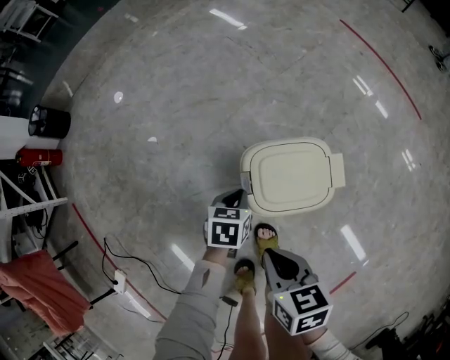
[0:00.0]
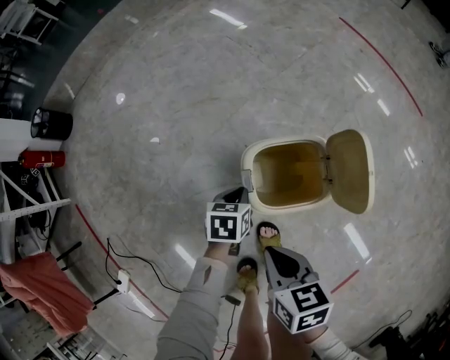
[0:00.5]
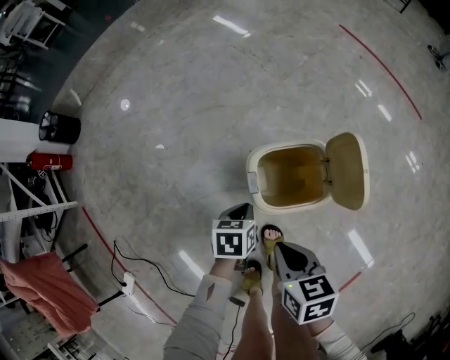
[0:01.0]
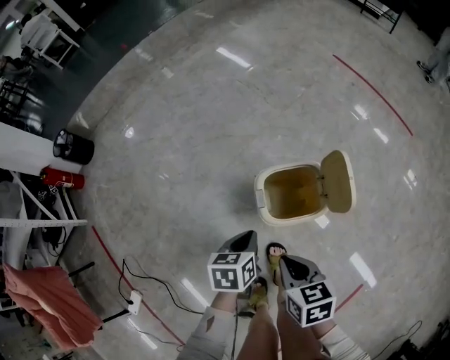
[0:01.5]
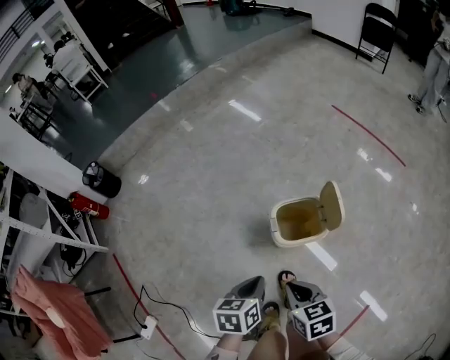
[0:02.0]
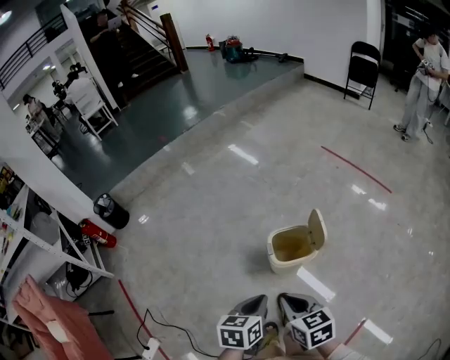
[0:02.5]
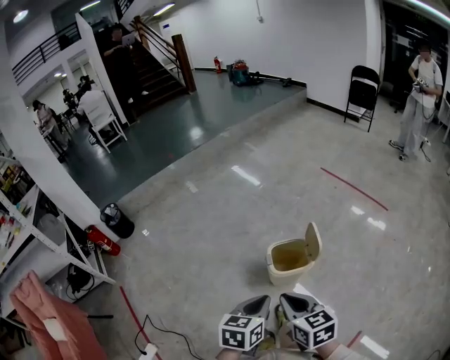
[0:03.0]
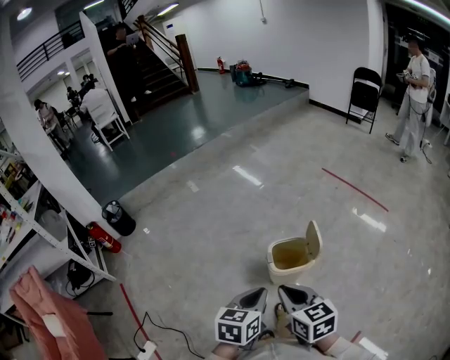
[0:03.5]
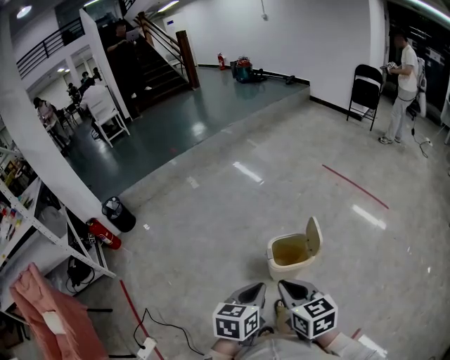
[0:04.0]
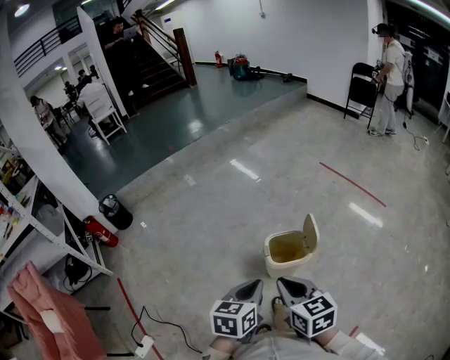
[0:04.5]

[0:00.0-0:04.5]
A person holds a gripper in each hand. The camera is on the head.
0:00.0 to 0:02.0: The left gripper moves upward and backward, some 35 cm, while the right gripper shifts roughly 15 cm upward and backward.
0:02.0 to 0:04.5: The left gripper heads upward and backward, covering about 20 cm, and turns by approximately 20 degrees; the right gripper goes about 20 cm upward, and swivels some 20 degrees.

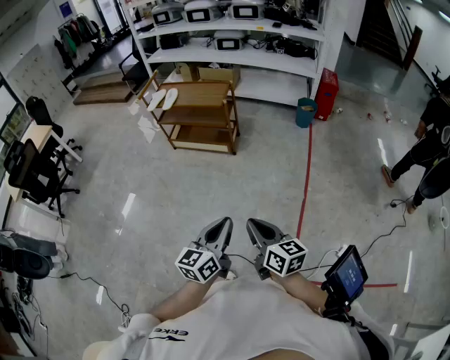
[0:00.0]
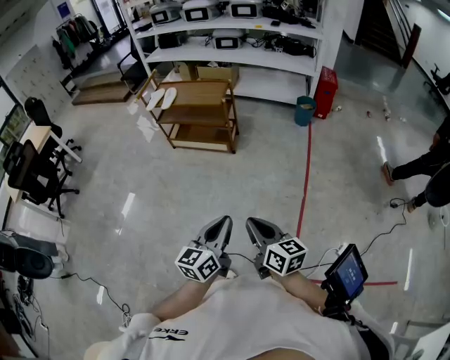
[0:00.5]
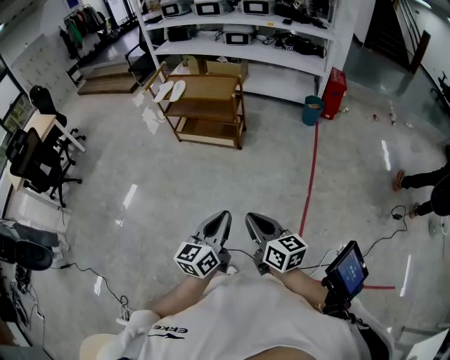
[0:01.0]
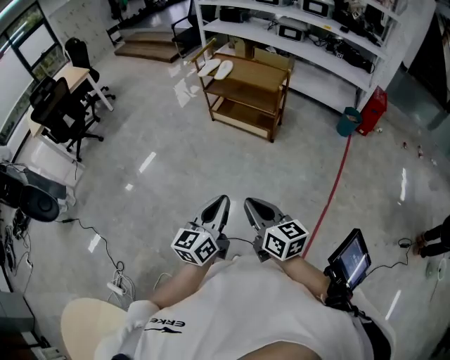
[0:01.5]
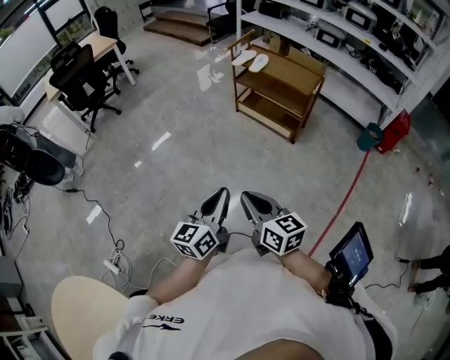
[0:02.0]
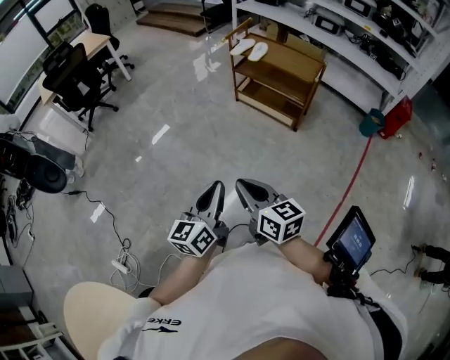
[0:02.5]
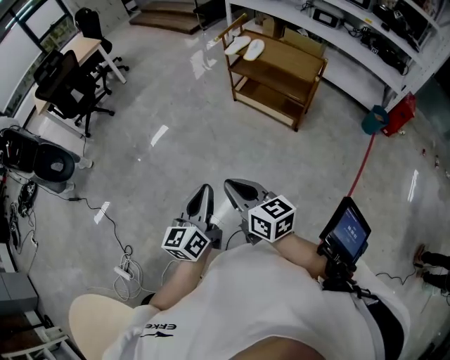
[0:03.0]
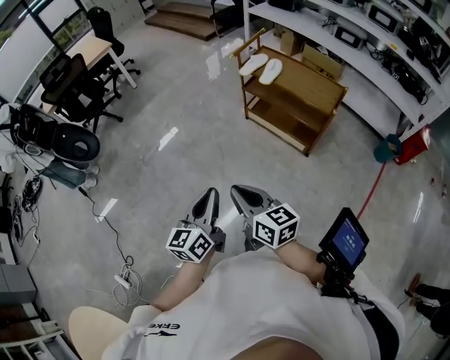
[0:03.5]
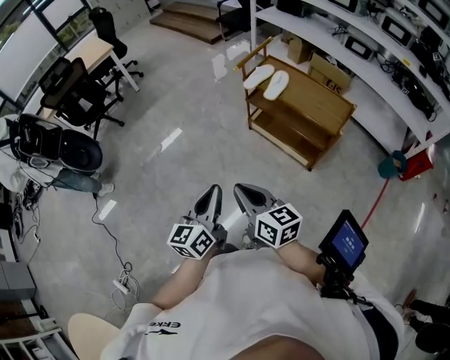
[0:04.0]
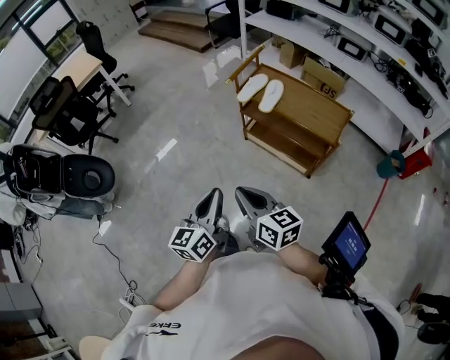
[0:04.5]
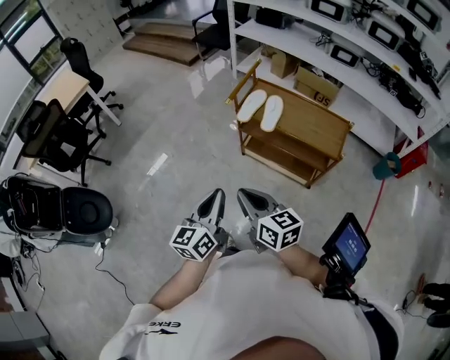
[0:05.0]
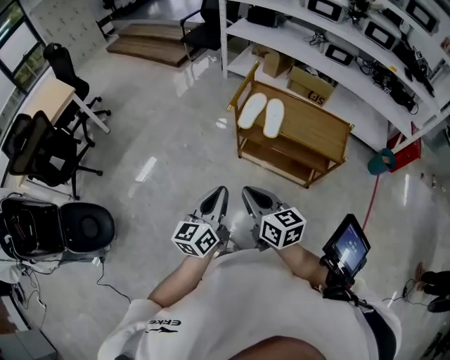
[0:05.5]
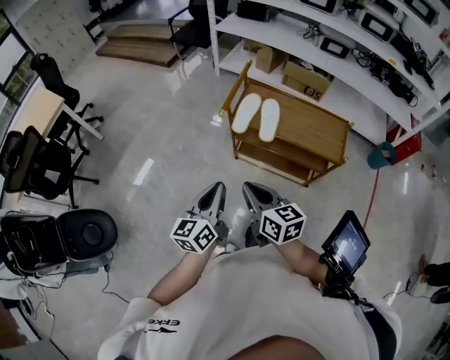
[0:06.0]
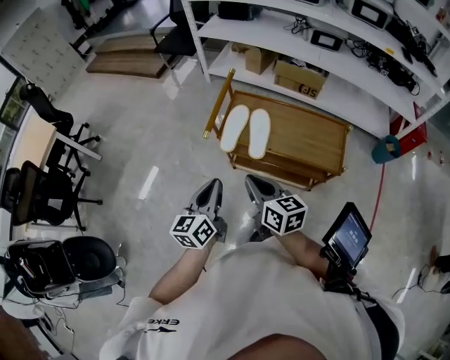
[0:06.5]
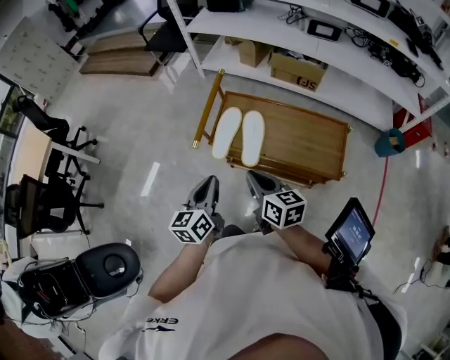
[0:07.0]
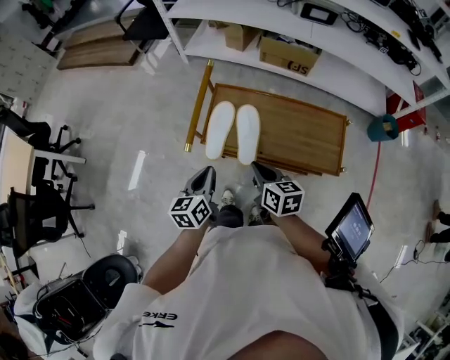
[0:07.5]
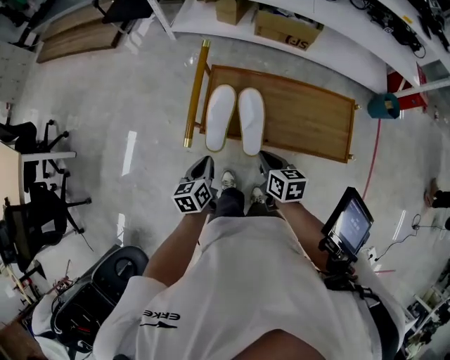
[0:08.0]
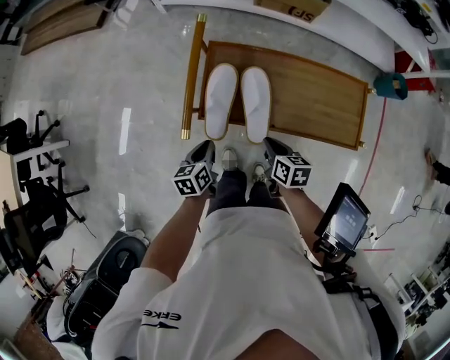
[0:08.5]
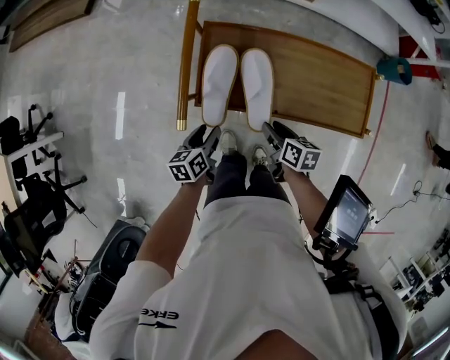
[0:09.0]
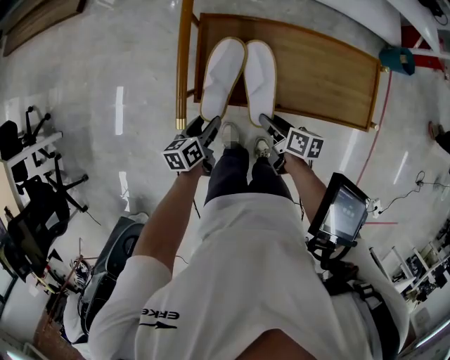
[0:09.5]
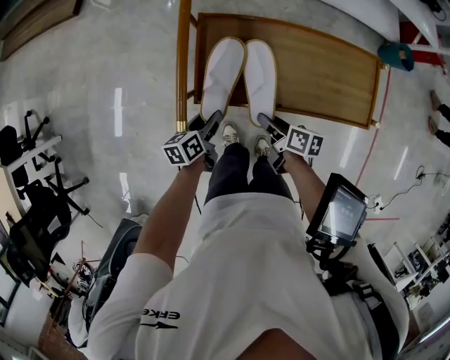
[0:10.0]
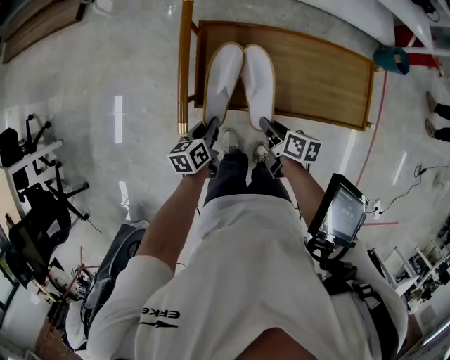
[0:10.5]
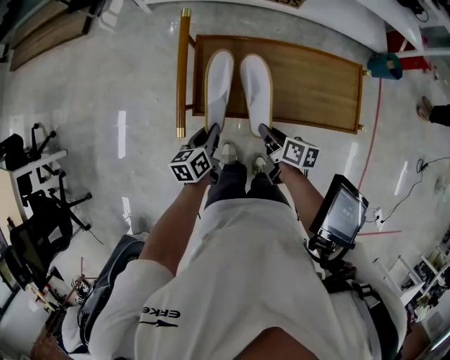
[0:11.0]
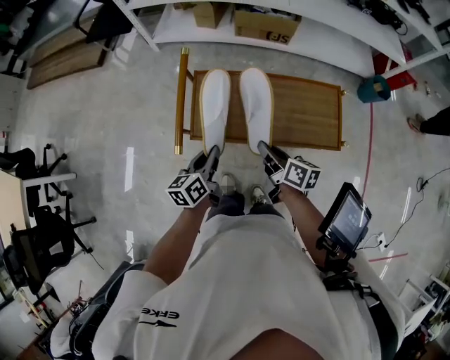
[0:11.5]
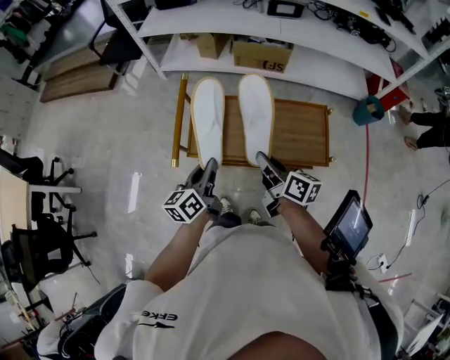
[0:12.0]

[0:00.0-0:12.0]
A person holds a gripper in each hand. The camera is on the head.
0:00.0 to 0:02.0: The right gripper changes place by about 25 cm, and rotates roughly 30 degrees. The left gripper moves some 25 cm, and swivels roughly 30 degrees.
0:02.0 to 0:04.0: The grippers both shift forward by roughly 35 cm.
0:04.0 to 0:06.0: The grippers both shift forward by roughly 35 cm. The right gripper rotates about 20 degrees.
0:06.0 to 0:08.0: The left gripper heads forward and downward, covering about 40 cm, and angles its fingers downward, by approximately 30 degrees. Meanwhile the right gripper is displaced forward, downward and to the right by about 40 cm, and rotates some 30 degrees.
0:08.0 to 0:10.0: The left gripper heads downward and forward, covering approximately 15 cm, rotates approximately 20 degrees, and opens up. The right gripper is displaced downward by roughly 15 cm, rotates about 30 degrees, and opens up.
0:10.0 to 0:12.0: The two grippers go approximately 25 cm upward. The left gripper turns by approximately 30 degrees, and closes up, while the right gripper changes its angle by some 30 degrees, and closes up.

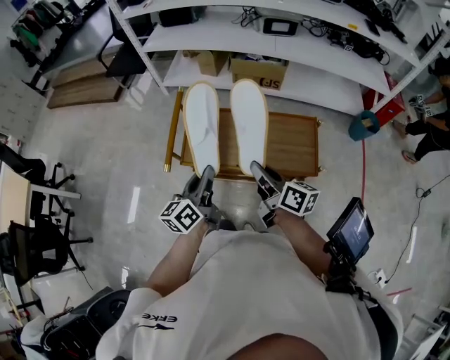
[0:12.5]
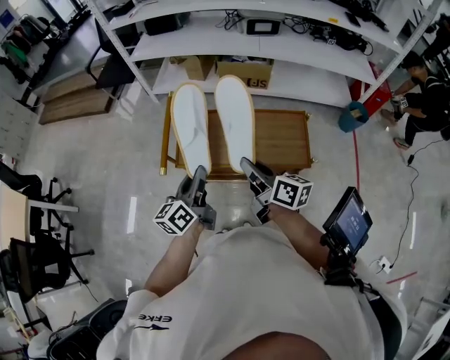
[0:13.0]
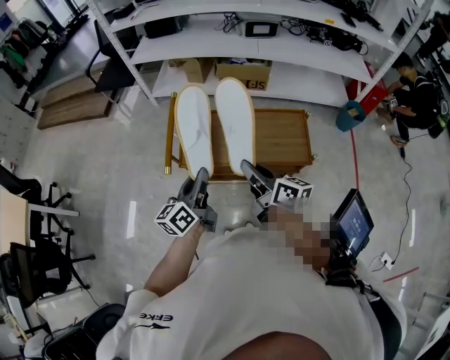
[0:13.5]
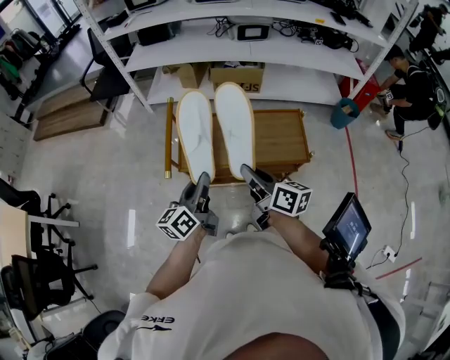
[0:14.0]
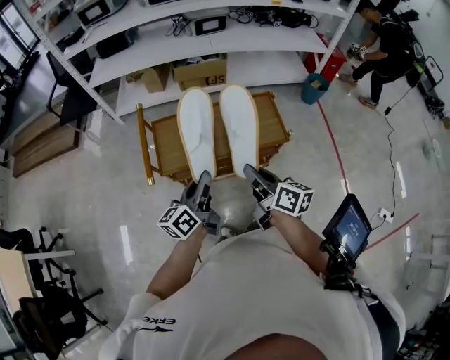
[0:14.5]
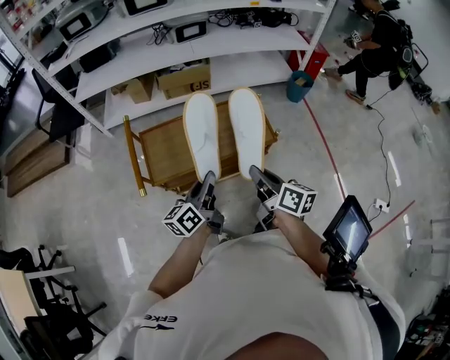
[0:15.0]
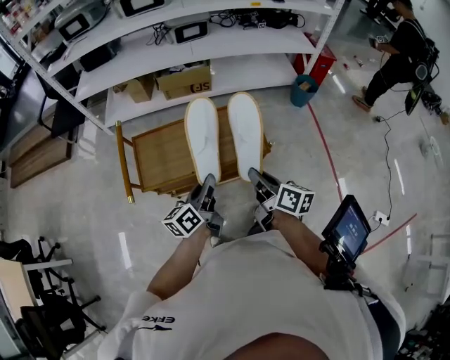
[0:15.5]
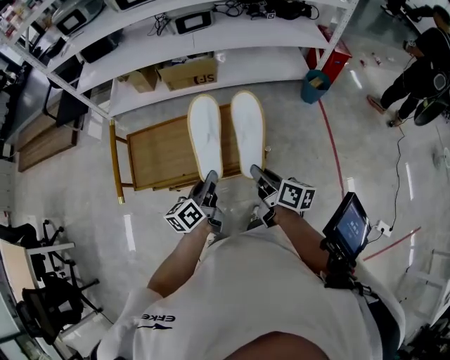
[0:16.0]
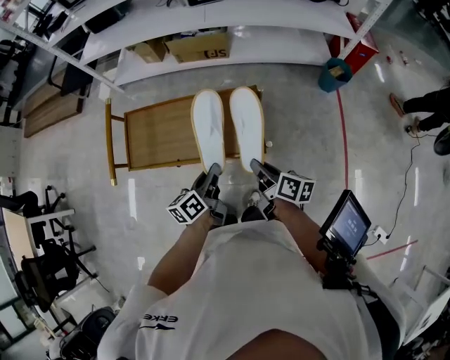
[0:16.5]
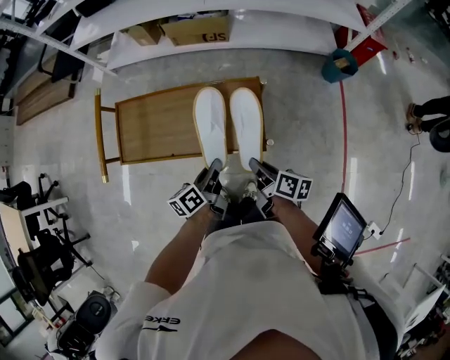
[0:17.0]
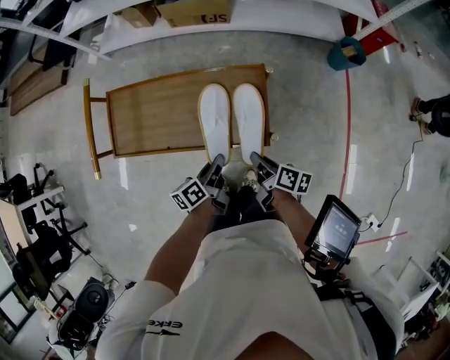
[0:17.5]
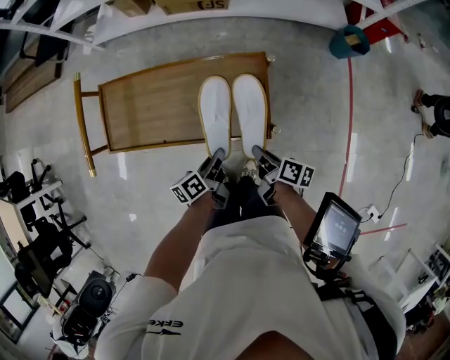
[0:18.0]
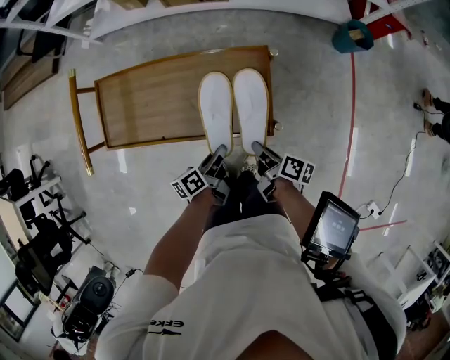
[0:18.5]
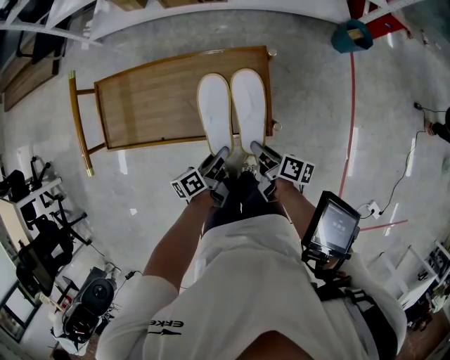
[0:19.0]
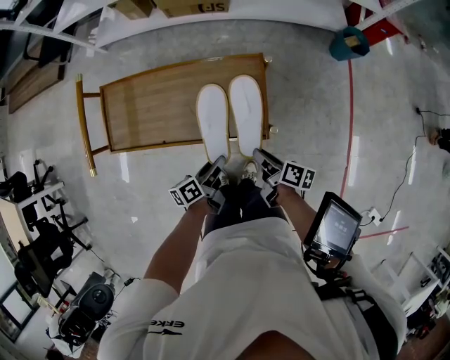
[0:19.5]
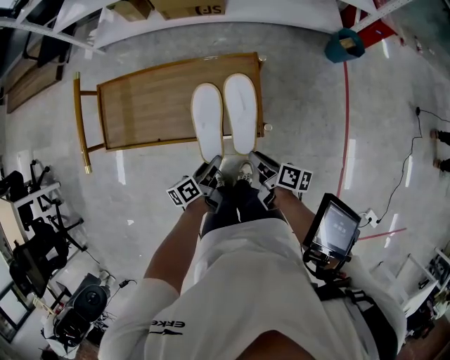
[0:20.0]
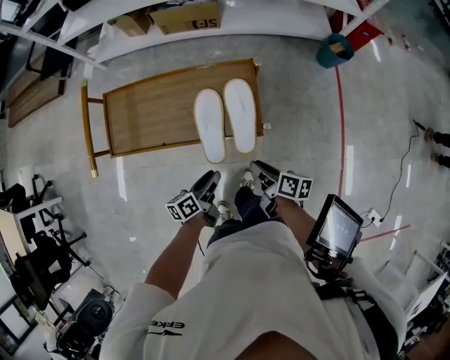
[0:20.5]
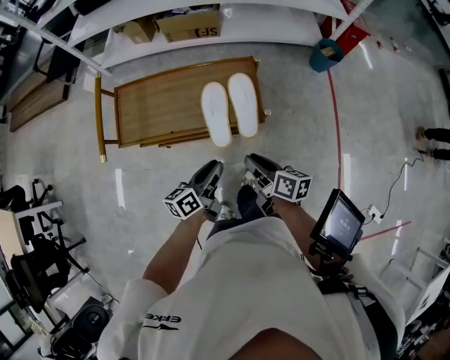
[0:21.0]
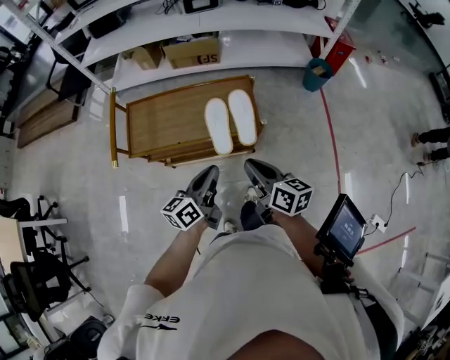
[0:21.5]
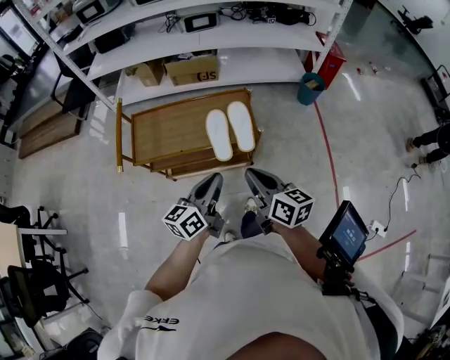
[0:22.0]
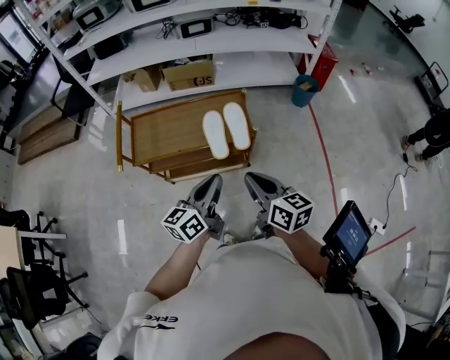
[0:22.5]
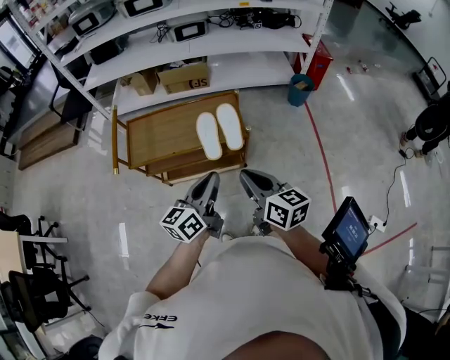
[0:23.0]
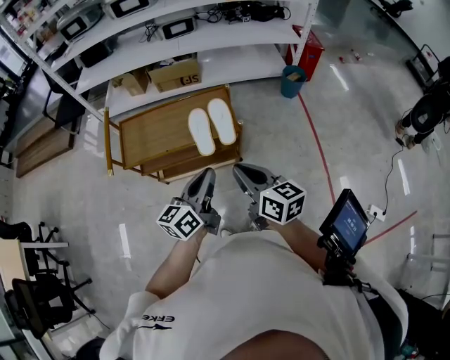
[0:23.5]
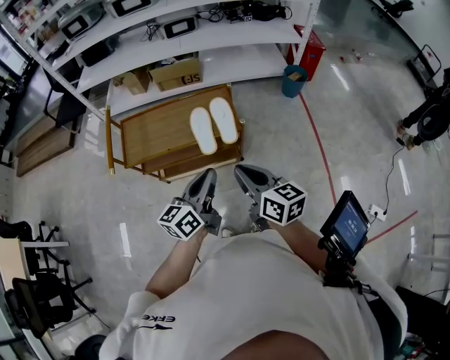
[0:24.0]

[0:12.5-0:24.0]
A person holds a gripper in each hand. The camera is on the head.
0:12.5 to 0:14.5: The right gripper heads backward, covering roughly 10 cm, while the left gripper travels backward by approximately 5 cm, and rotates roughly 20 degrees.
0:14.5 to 0:16.5: Both grippers move to the right, forward and downward, roughly 30 cm. The left gripper changes its angle by some 20 degrees.
0:16.5 to 0:18.5: Both grippers travel together downward, roughly 15 cm. The left gripper turns by roughly 20 degrees; the right gripper rotates about 20 degrees.
0:18.5 to 0:20.0: The right gripper opens up. Meanwhile the left gripper opens.
0:20.0 to 0:22.0: The two grippers go roughly 35 cm upward and backward. The right gripper rotates about 40 degrees, and closes its fingers. Meanwhile the left gripper rotates about 40 degrees, and closes its fingers.
0:22.0 to 0:24.0: The left gripper changes place by roughly 5 cm; the right gripper moves backward, approximately 5 cm.
